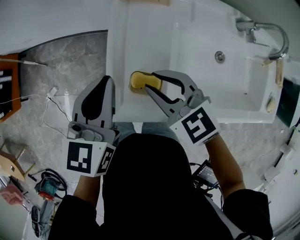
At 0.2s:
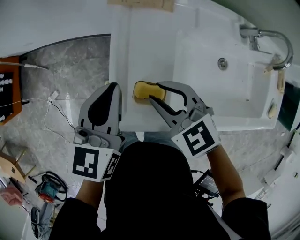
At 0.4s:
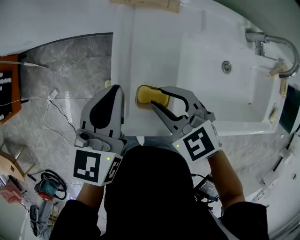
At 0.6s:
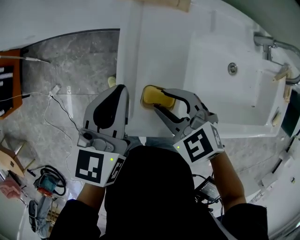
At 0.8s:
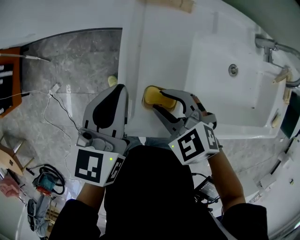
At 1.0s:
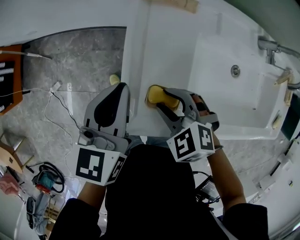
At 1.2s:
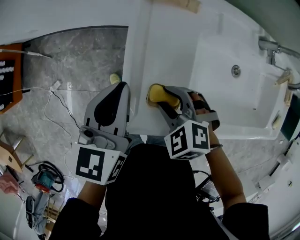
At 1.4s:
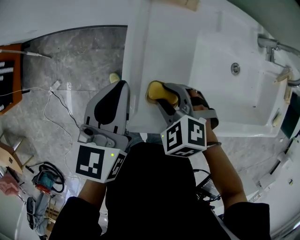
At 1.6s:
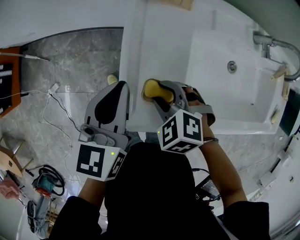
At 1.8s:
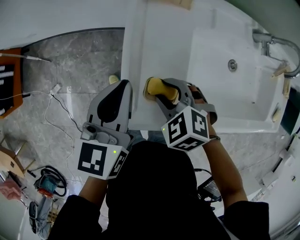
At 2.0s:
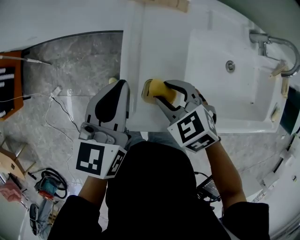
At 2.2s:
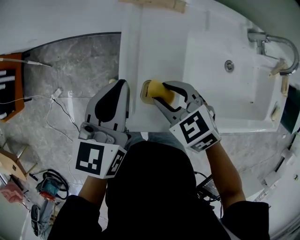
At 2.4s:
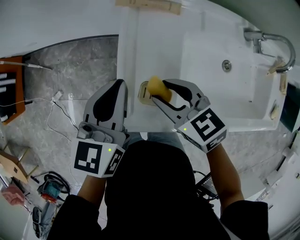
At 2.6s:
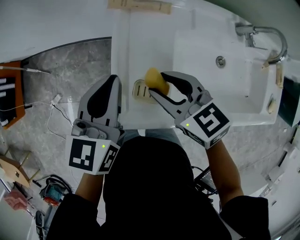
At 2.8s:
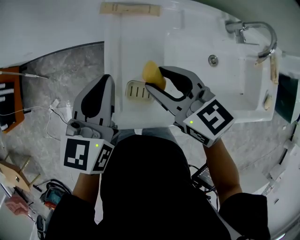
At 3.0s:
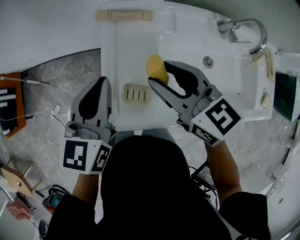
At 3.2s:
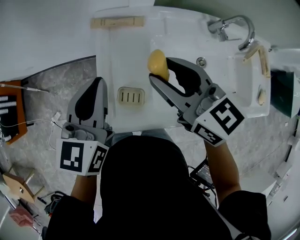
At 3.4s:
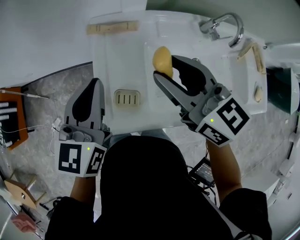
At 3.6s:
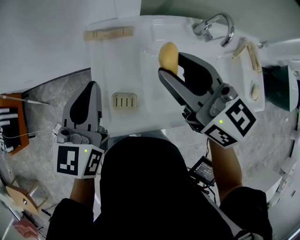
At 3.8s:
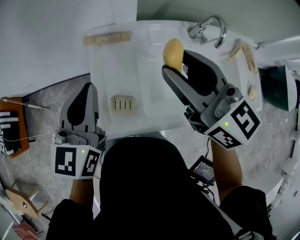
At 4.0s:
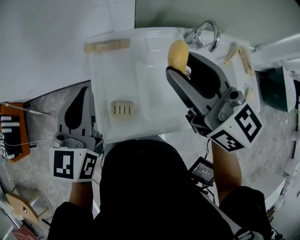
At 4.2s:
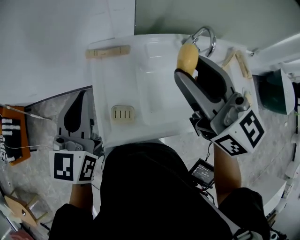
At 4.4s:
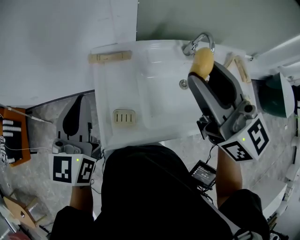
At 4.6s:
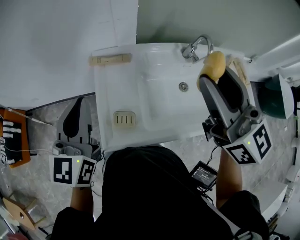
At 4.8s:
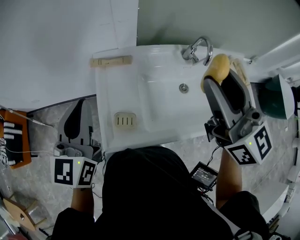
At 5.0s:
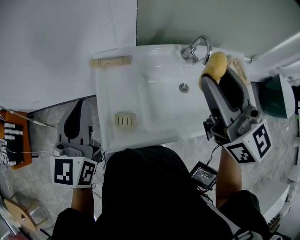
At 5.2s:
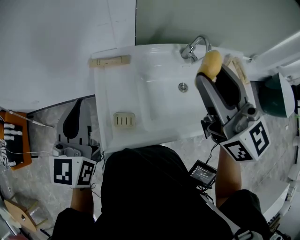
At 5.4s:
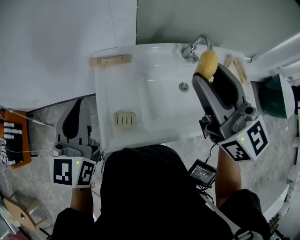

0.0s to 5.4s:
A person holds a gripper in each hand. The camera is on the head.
0.0s to 1.4s: The right gripper is displaced downward by roughly 10 cm, and changes its angle by approximately 30 degrees.
1.4s to 2.8s: The right gripper moves upward, some 15 cm, and angles its fingers upward, by approximately 40 degrees. Meanwhile the left gripper shifts roughly 5 cm upward.
2.8s to 4.0s: The left gripper travels upward by about 10 cm. Meanwhile the right gripper goes about 25 cm upward and to the right, and turns by some 30 degrees.
4.0s to 5.4s: The right gripper travels upward by some 5 cm.

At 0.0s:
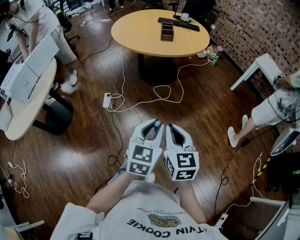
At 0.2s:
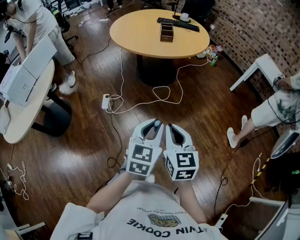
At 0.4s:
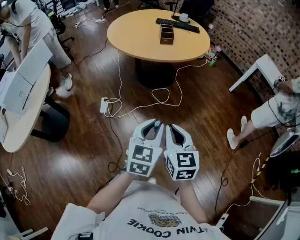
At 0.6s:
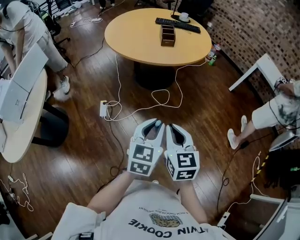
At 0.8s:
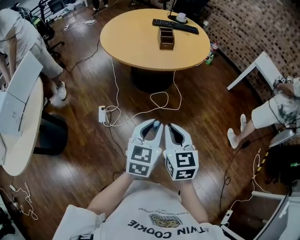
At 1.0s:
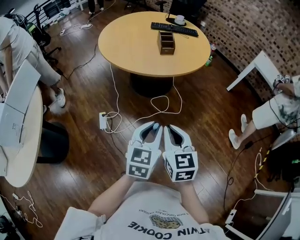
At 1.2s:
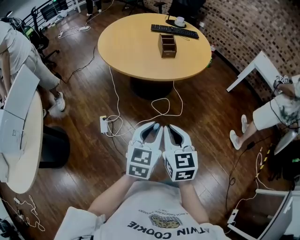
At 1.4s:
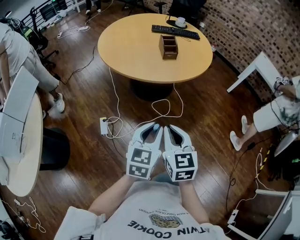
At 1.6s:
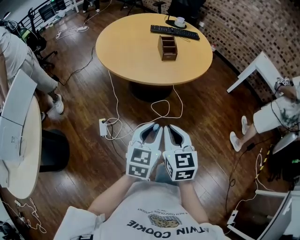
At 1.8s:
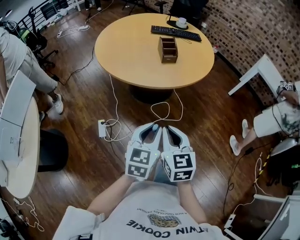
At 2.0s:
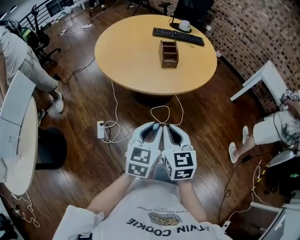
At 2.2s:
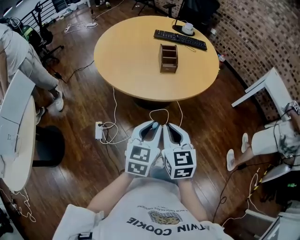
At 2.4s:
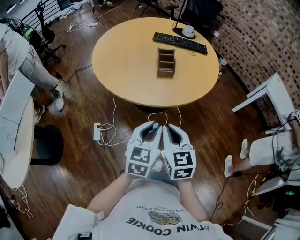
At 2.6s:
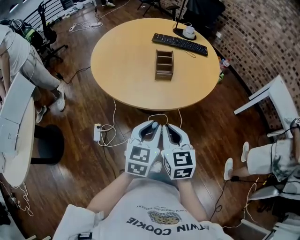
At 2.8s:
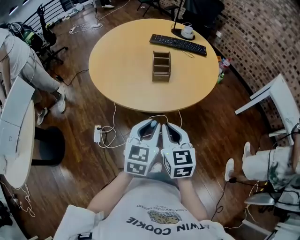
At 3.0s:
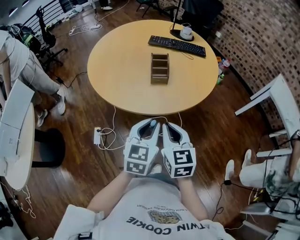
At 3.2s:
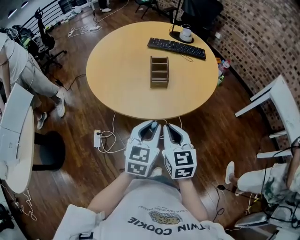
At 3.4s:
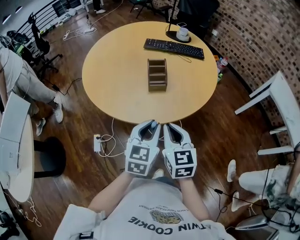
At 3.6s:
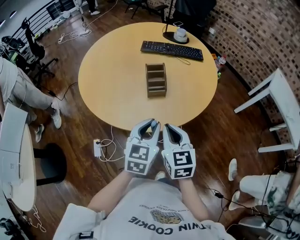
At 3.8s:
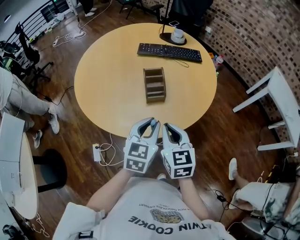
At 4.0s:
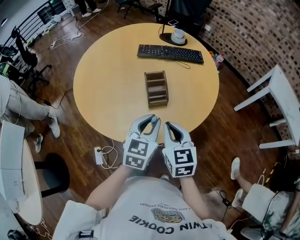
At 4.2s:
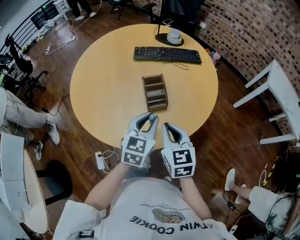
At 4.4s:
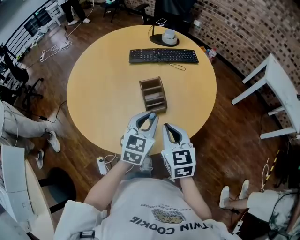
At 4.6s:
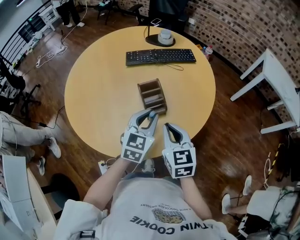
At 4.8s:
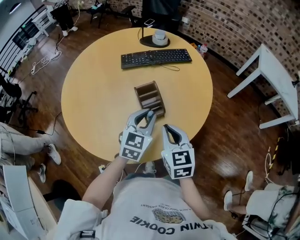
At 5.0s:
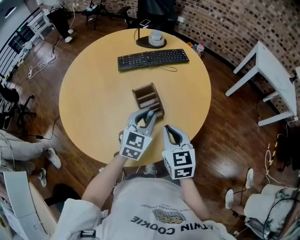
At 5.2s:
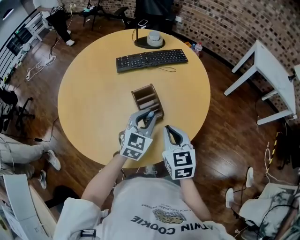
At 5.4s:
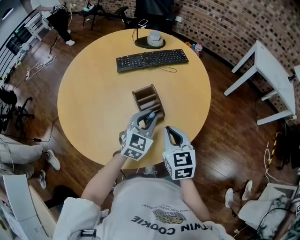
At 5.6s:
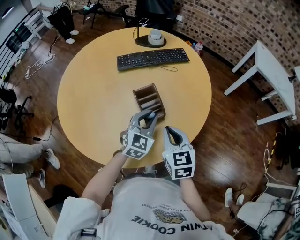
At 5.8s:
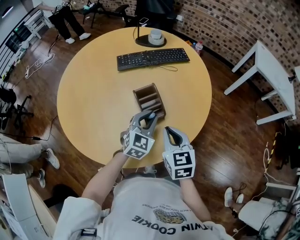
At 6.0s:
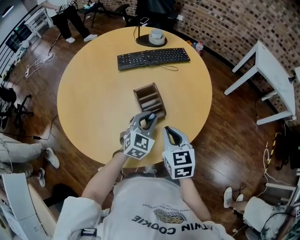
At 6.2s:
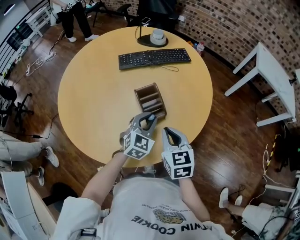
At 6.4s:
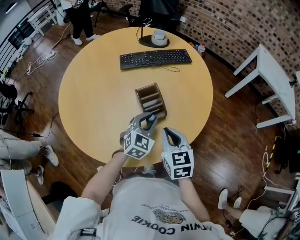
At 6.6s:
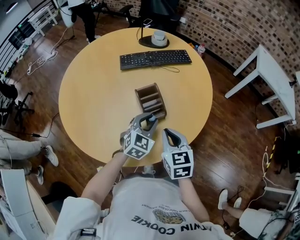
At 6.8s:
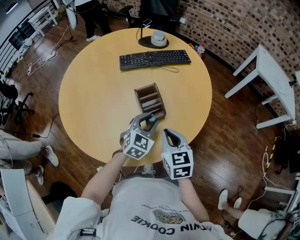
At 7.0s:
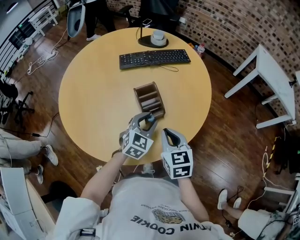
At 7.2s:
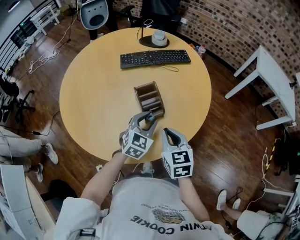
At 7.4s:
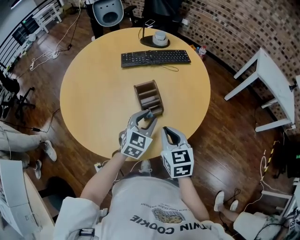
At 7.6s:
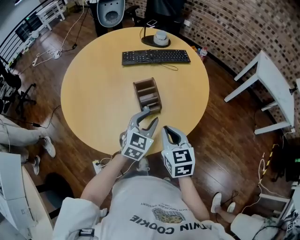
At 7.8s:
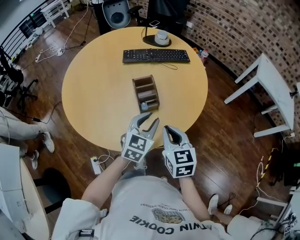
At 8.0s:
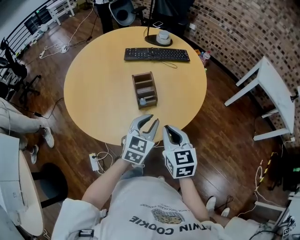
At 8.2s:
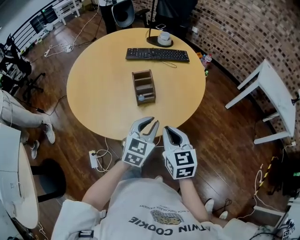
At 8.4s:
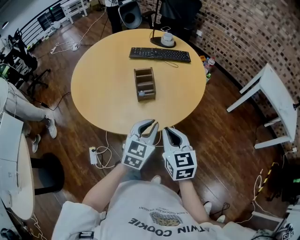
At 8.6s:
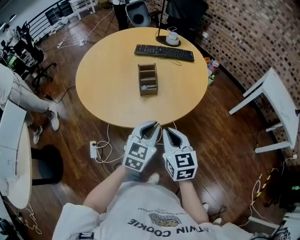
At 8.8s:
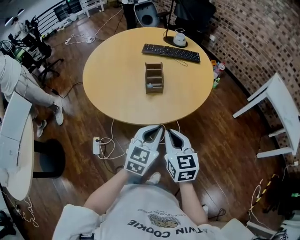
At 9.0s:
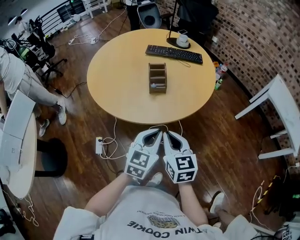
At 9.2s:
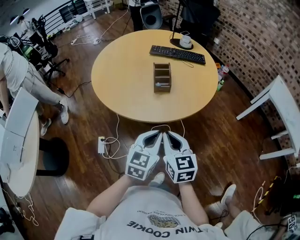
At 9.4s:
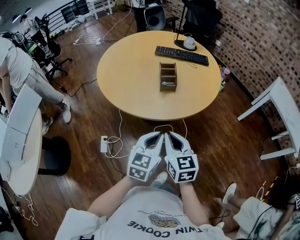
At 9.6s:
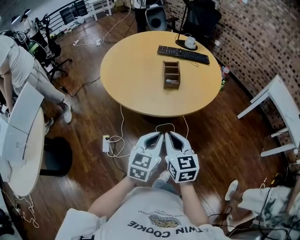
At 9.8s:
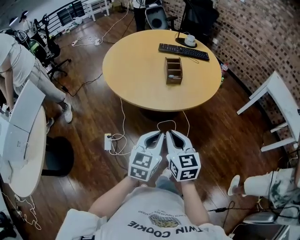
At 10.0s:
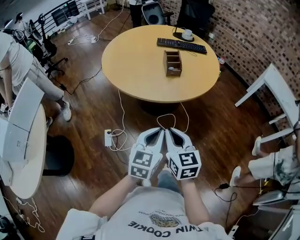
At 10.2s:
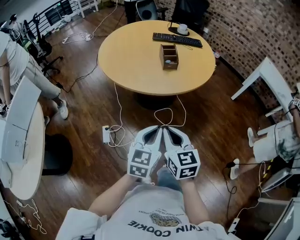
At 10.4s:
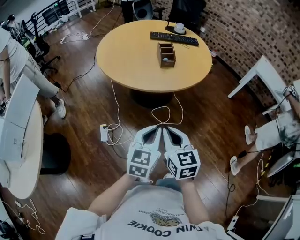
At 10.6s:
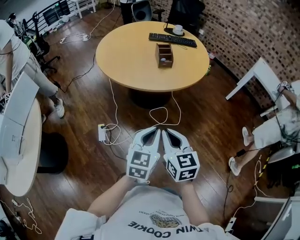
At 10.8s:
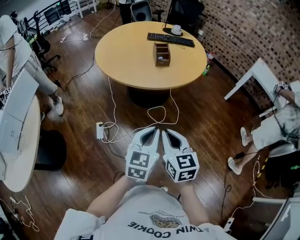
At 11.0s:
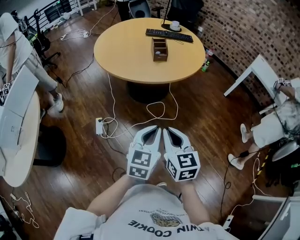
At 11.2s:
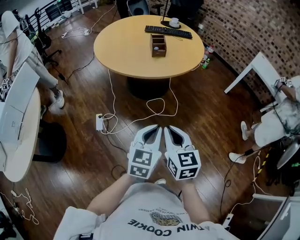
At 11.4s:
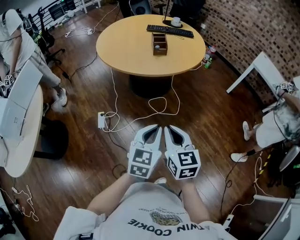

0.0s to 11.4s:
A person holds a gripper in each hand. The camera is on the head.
0.0s to 1.4s: The two grippers go roughly 30 cm forward and to the left.
1.4s to 2.8s: Both grippers move forward and to the right, about 30 cm.
2.8s to 4.2s: The grippers both shift forward by about 20 cm.
4.2s to 5.6s: The right gripper heads forward, covering roughly 5 cm. Meanwhile the left gripper shifts about 10 cm forward and downward, and swivels approximately 20 degrees.
5.6s to 7.2s: The grippers move only a little.
7.2s to 8.6s: Both grippers move backward and to the right, some 20 cm. The left gripper swivels some 20 degrees, and closes up.
8.6s to 10.0s: Both grippers travel together backward and to the left, roughly 25 cm.
10.0s to 11.4s: The grippers both shift backward and to the right by approximately 20 cm.

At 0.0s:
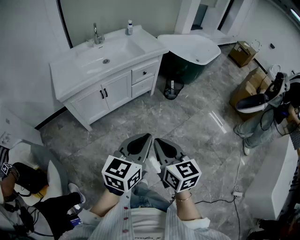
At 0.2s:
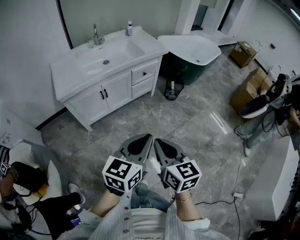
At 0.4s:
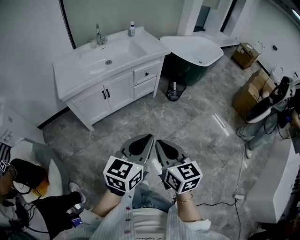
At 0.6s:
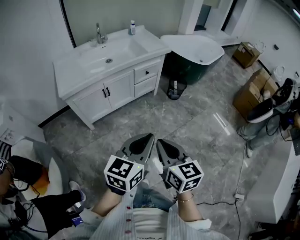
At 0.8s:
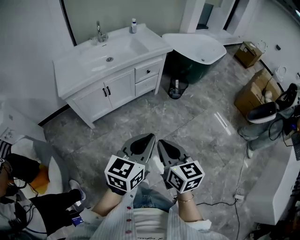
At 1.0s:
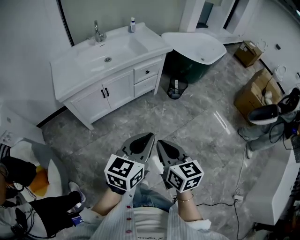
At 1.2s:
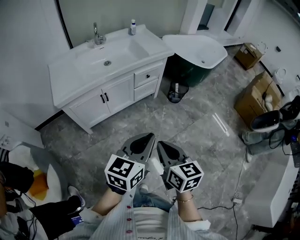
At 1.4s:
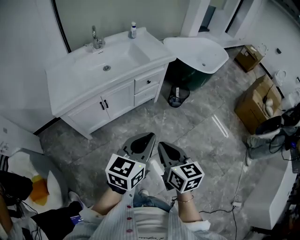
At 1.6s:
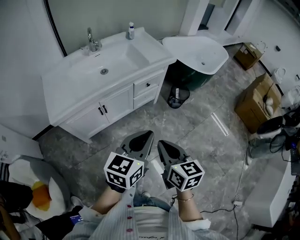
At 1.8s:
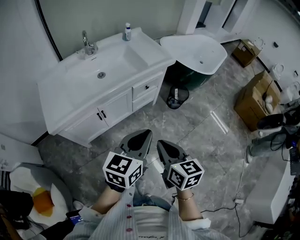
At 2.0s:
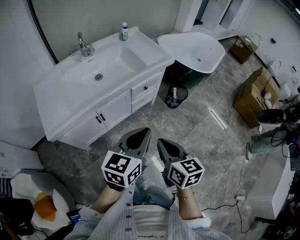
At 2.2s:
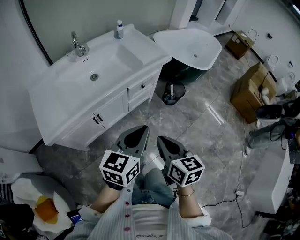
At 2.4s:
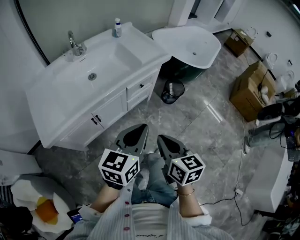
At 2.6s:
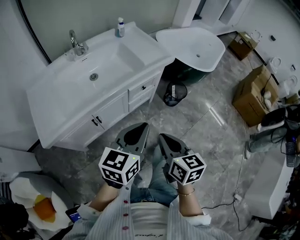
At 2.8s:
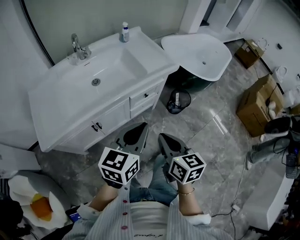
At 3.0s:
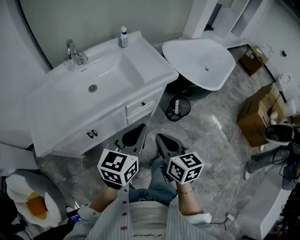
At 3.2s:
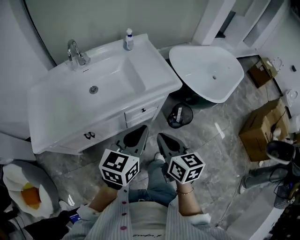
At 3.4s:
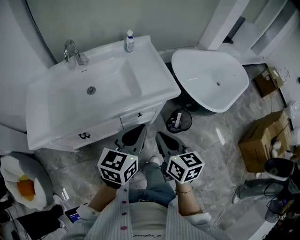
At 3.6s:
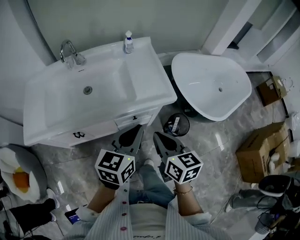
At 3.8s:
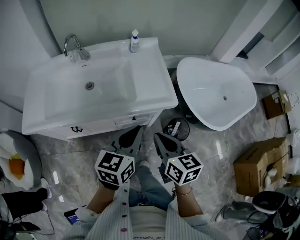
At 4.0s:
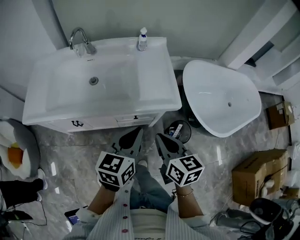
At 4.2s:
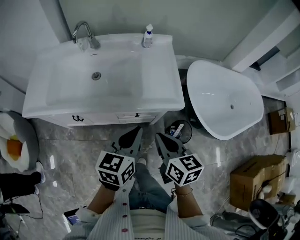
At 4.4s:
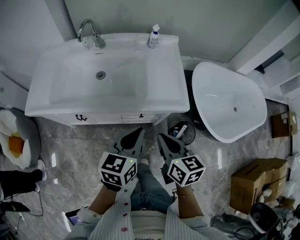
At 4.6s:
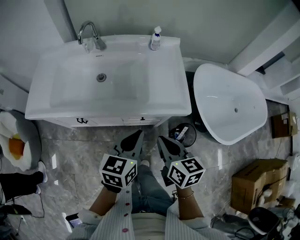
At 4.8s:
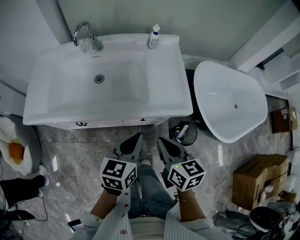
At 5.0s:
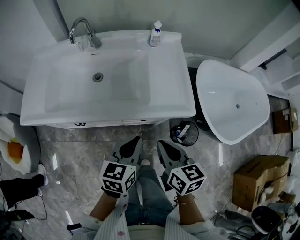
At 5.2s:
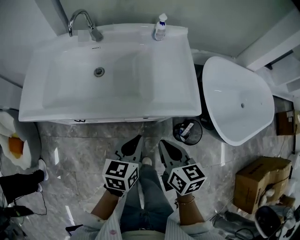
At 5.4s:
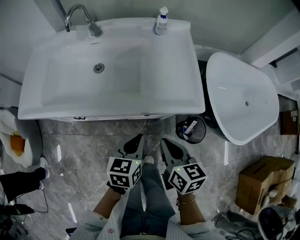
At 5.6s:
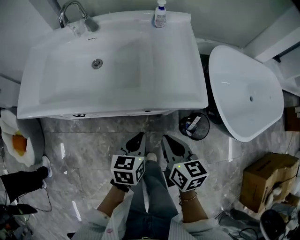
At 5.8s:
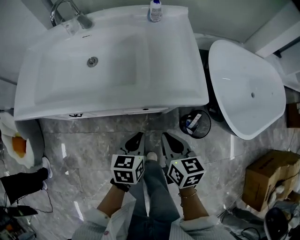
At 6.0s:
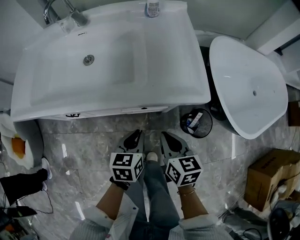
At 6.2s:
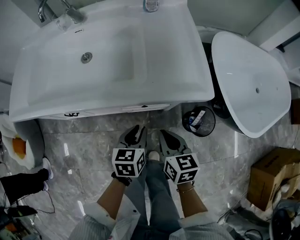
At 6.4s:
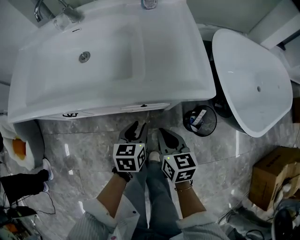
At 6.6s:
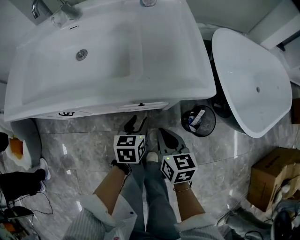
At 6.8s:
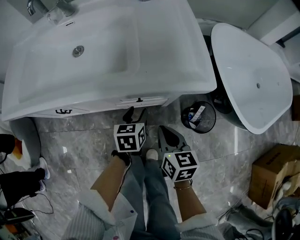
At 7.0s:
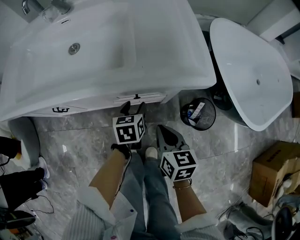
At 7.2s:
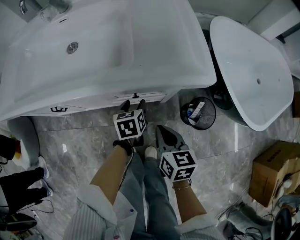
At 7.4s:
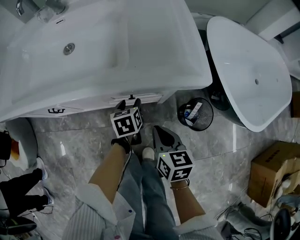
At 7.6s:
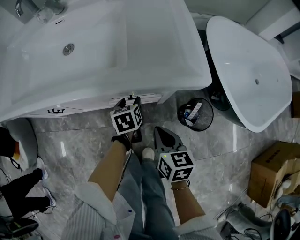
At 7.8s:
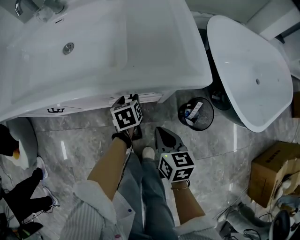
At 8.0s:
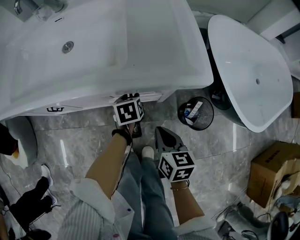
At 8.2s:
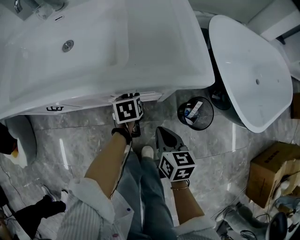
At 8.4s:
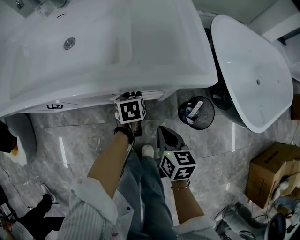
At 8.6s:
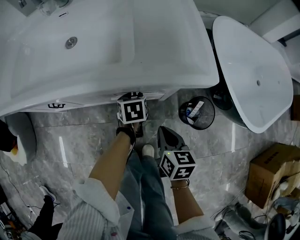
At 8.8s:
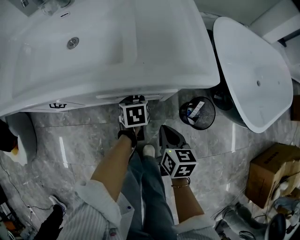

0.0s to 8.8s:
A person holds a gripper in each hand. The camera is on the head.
0.0s to 1.4s: The two grippers go approximately 15 cm forward.
1.4s to 3.0s: Both grippers move forward, roughly 30 cm.
3.0s to 4.4s: The left gripper ends up about 15 cm from where it was, and changes its angle by approximately 30 degrees; the right gripper ends up some 20 cm from where it was, and turns by approximately 30 degrees.
4.4s to 5.8s: The grippers both shift downward by some 20 cm.
5.8s to 7.4s: The right gripper moves downward, about 15 cm. The left gripper moves downward and forward, roughly 20 cm, and opens its fingers.
7.4s to 8.8s: The left gripper closes its fingers.
